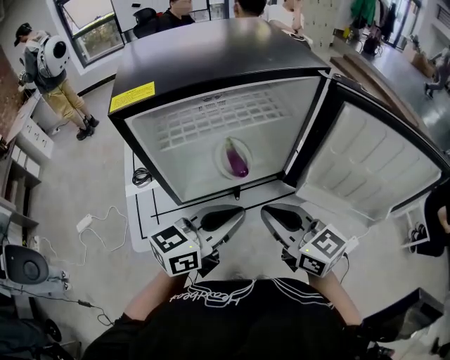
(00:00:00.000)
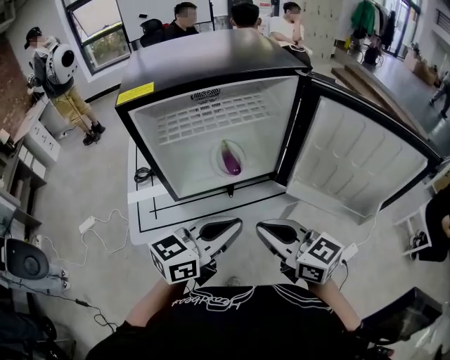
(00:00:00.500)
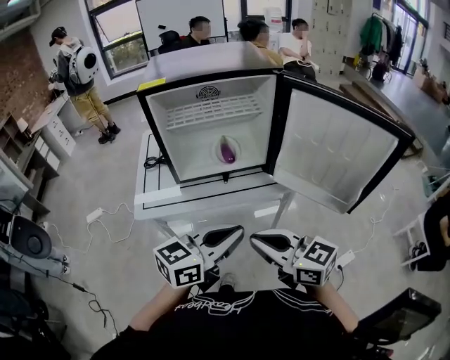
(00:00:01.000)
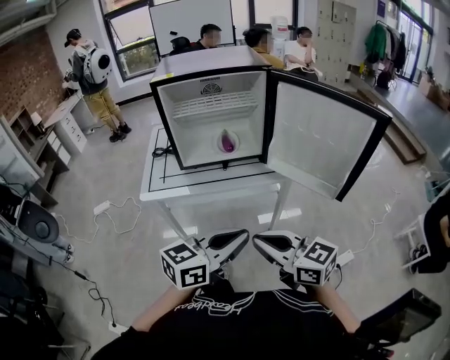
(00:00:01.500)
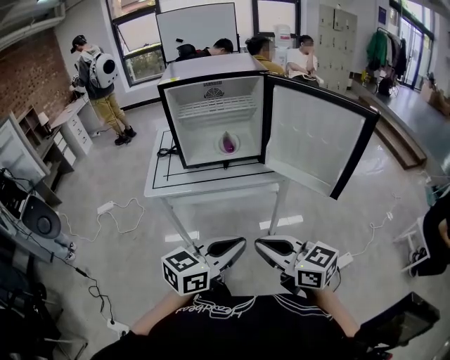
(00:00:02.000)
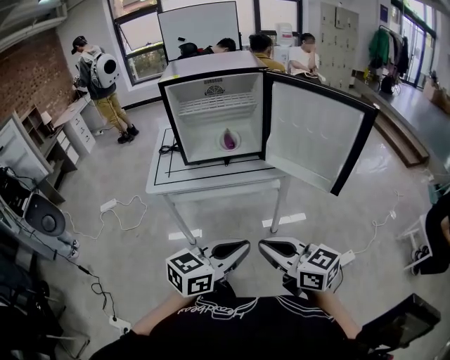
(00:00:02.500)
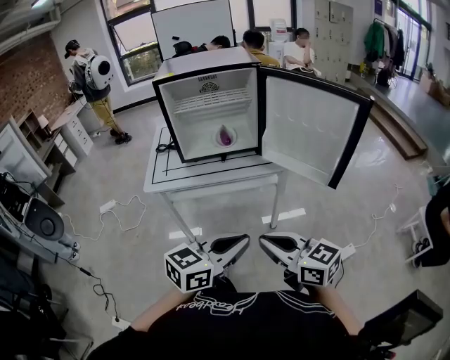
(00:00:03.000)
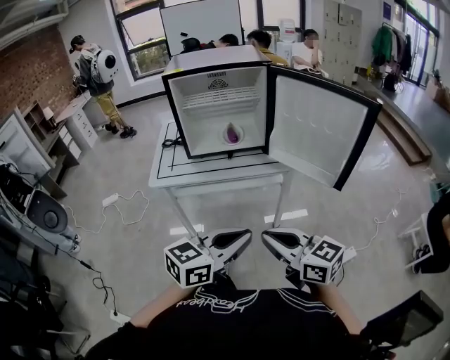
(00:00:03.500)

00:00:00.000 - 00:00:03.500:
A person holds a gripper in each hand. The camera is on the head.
00:00:00.000 - 00:00:02.000: The grippers both shift backward by about 35 cm.
00:00:02.000 - 00:00:03.500: The grippers make only small movements.

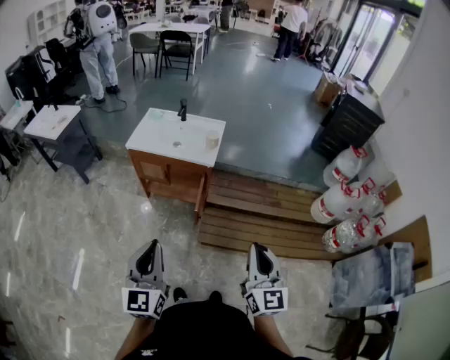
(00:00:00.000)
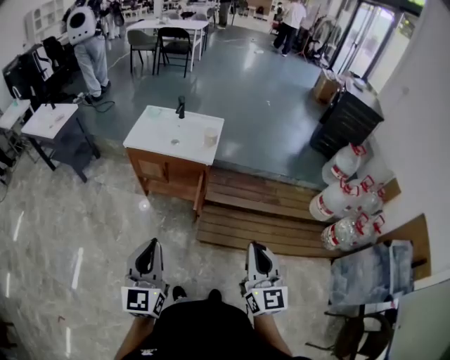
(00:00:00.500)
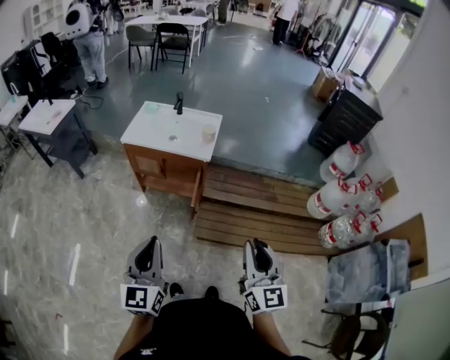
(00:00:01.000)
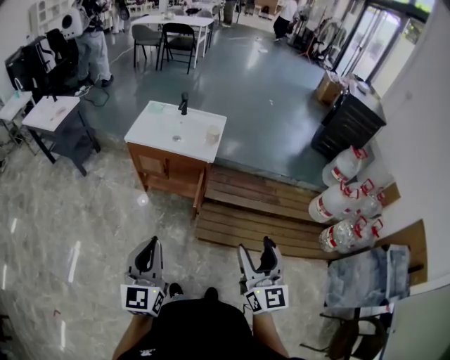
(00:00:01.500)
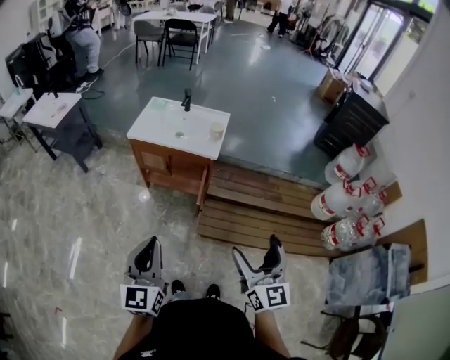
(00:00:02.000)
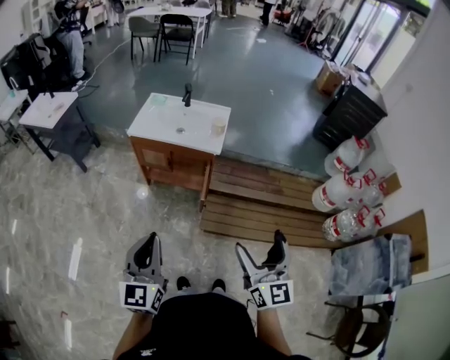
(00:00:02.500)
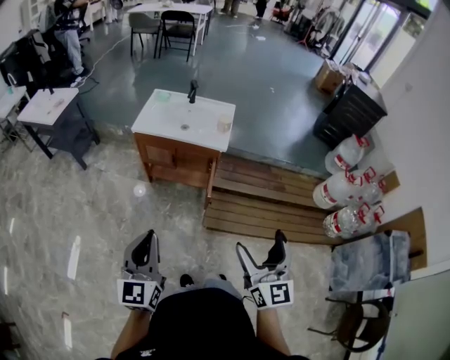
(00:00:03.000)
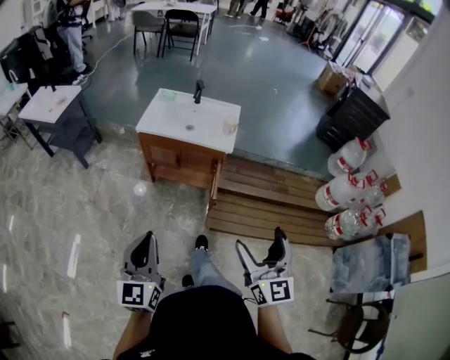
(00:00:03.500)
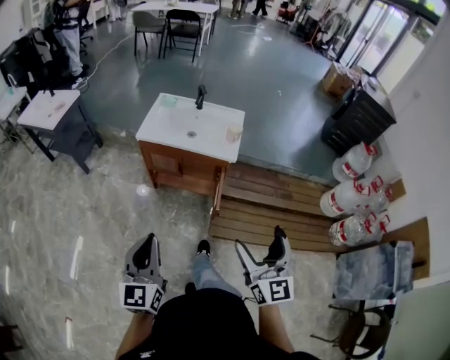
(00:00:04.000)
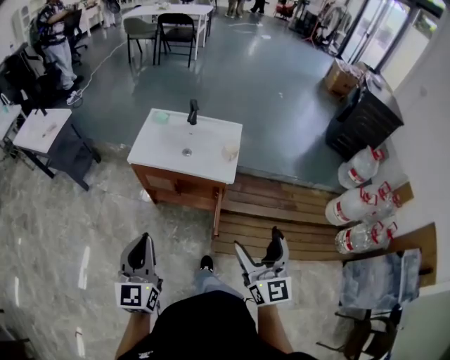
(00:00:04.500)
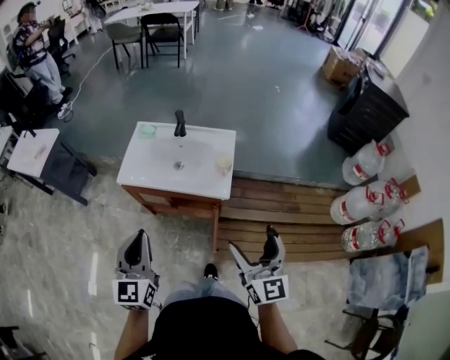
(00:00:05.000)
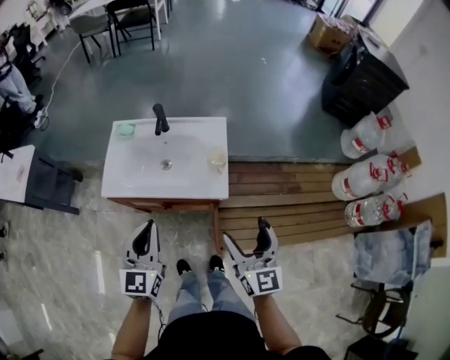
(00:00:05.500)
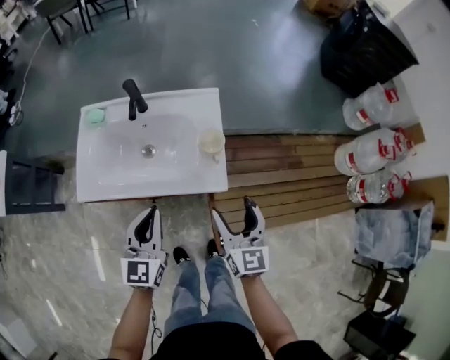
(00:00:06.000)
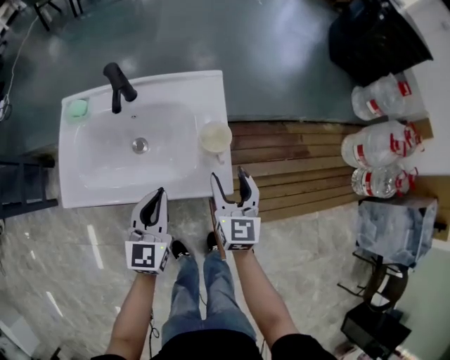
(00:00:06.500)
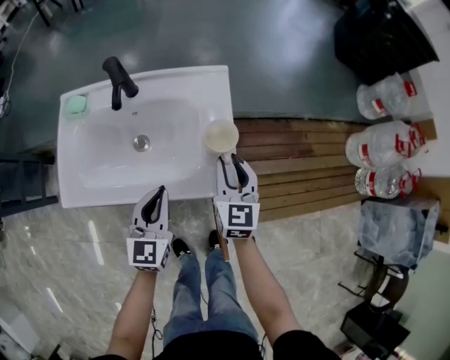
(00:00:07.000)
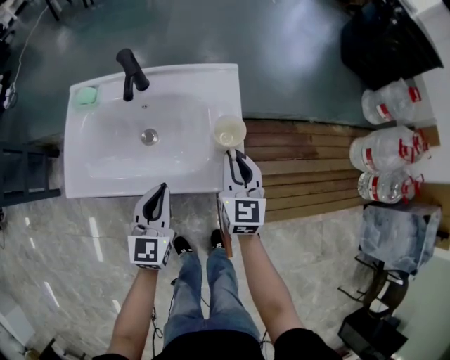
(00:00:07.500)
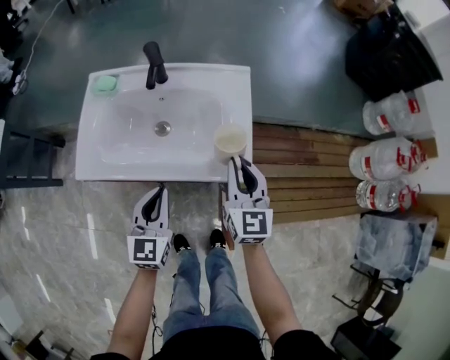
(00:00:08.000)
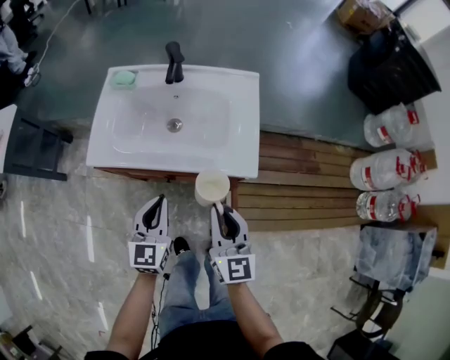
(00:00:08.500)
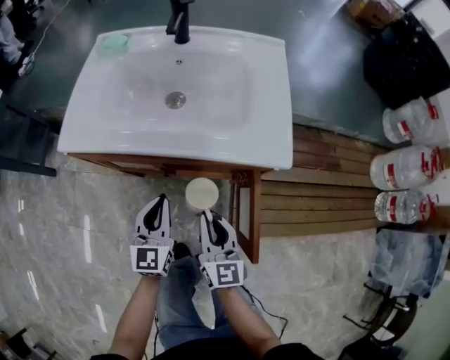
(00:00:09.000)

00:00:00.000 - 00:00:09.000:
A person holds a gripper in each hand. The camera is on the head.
00:00:00.000 - 00:00:02.000: The right gripper opens up.
00:00:02.000 - 00:00:04.500: The left gripper moves forward and to the left, some 25 cm; the right gripper is displaced forward by about 20 cm.
00:00:04.500 - 00:00:07.000: Both grippers are carried forward, about 40 cm. The grippers both shift downward by some 35 cm. The right gripper swivels about 30 degrees, and closes. The left gripper changes its angle by roughly 30 degrees.
00:00:07.000 - 00:00:09.000: The left gripper is displaced downward, backward and to the left by roughly 20 cm. The right gripper is displaced backward, downward and to the left by some 30 cm.

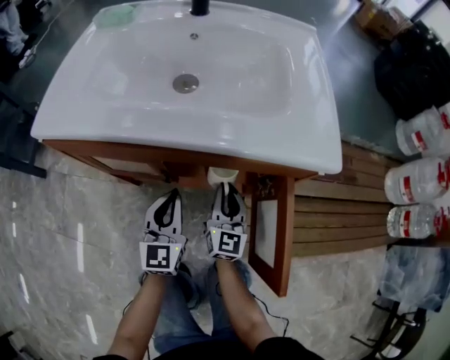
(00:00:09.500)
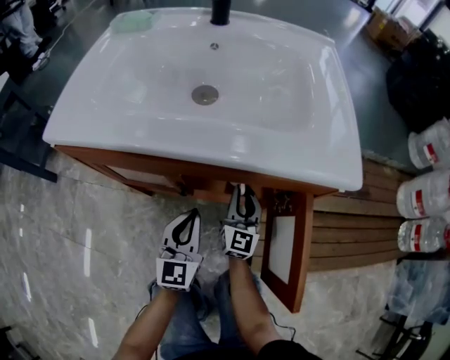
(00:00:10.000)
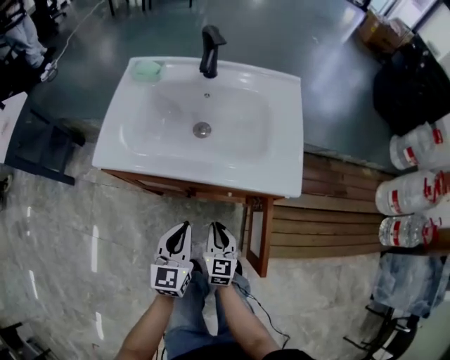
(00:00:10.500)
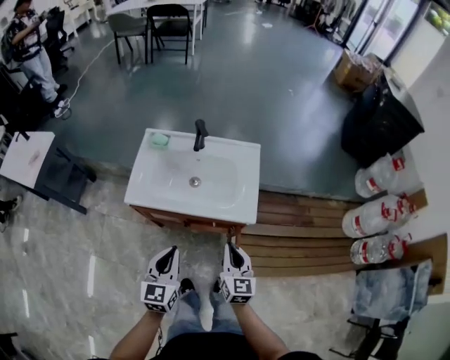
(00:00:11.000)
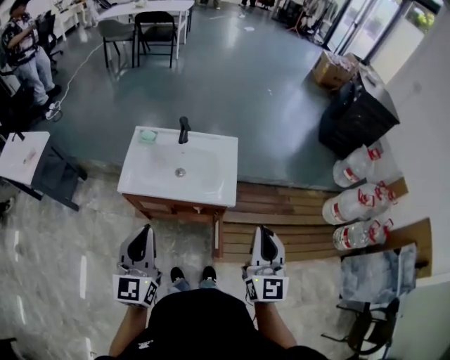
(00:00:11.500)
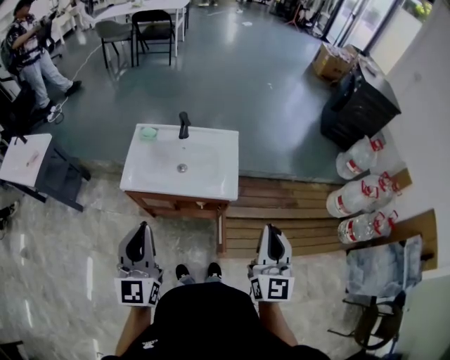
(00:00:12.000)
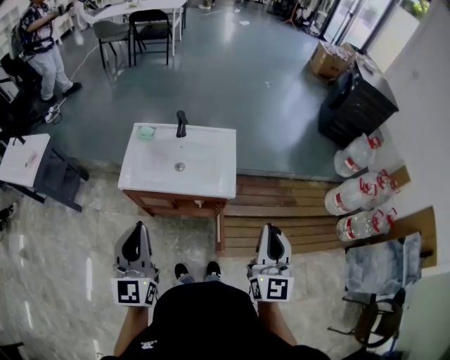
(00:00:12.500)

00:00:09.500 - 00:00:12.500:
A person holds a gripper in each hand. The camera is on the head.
00:00:09.500 - 00:00:11.000: The grippers both shift upward by about 40 cm.
00:00:11.000 - 00:00:12.500: The right gripper heads upward and to the right, covering roughly 30 cm, and rotates approximately 30 degrees. The left gripper travels upward by about 25 cm, and rotates roughly 20 degrees.

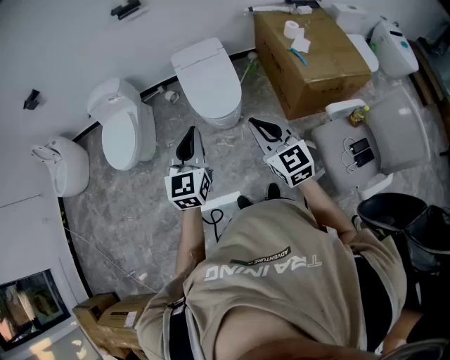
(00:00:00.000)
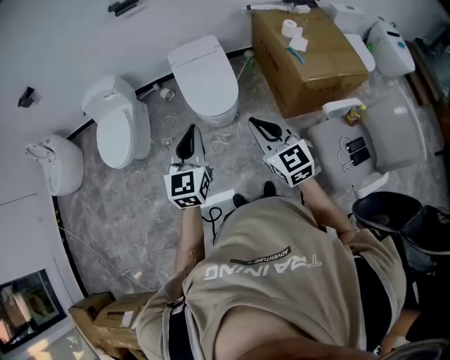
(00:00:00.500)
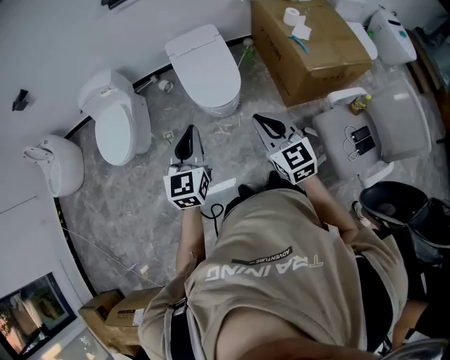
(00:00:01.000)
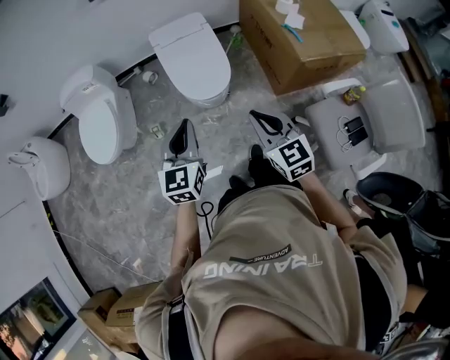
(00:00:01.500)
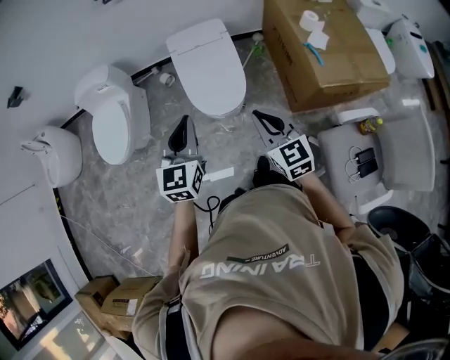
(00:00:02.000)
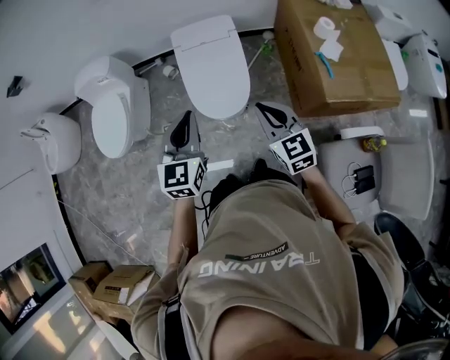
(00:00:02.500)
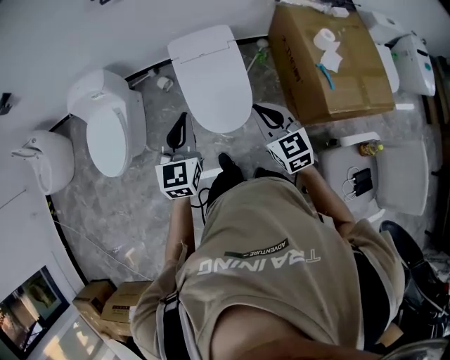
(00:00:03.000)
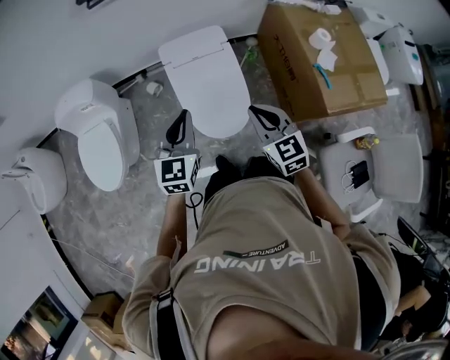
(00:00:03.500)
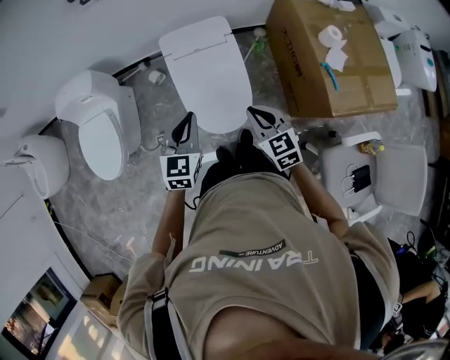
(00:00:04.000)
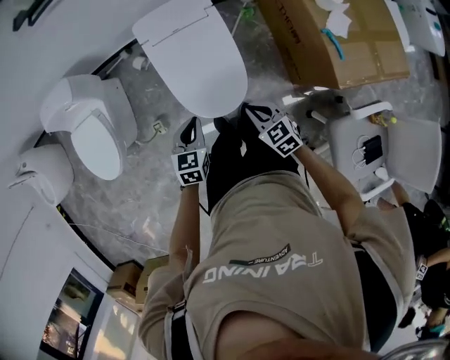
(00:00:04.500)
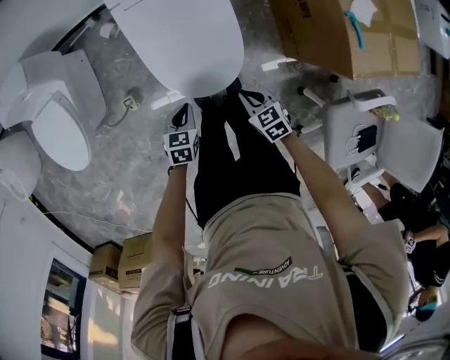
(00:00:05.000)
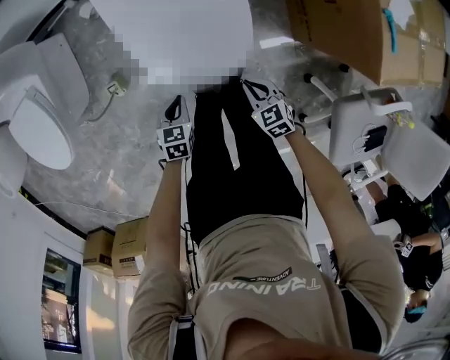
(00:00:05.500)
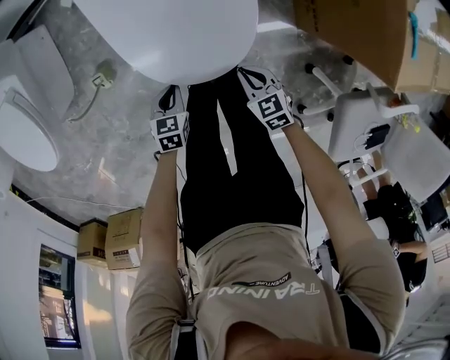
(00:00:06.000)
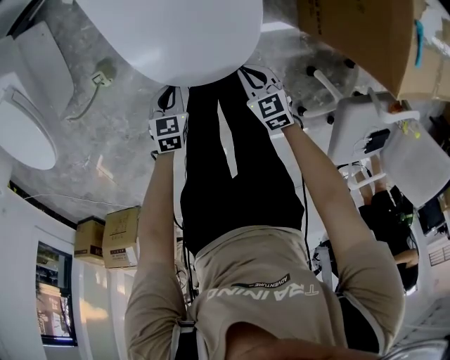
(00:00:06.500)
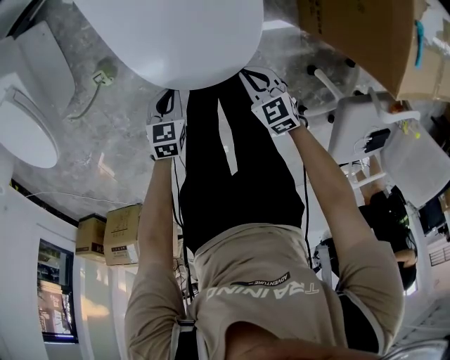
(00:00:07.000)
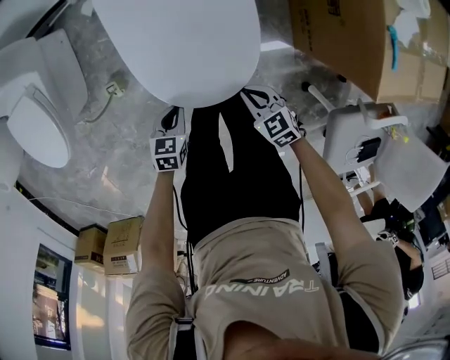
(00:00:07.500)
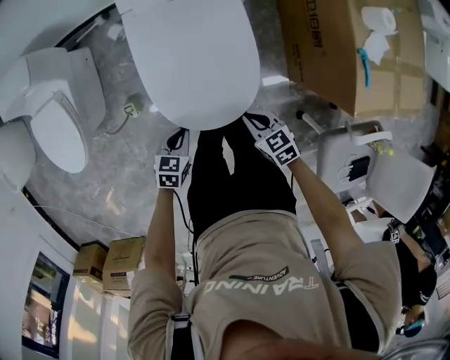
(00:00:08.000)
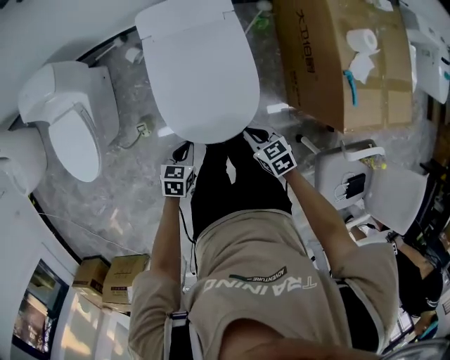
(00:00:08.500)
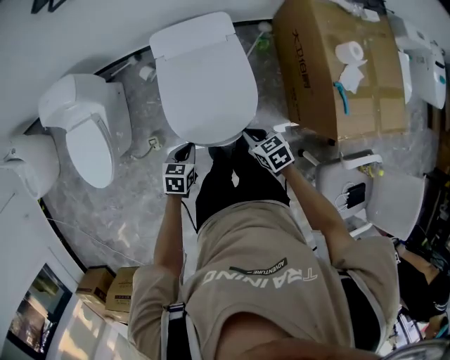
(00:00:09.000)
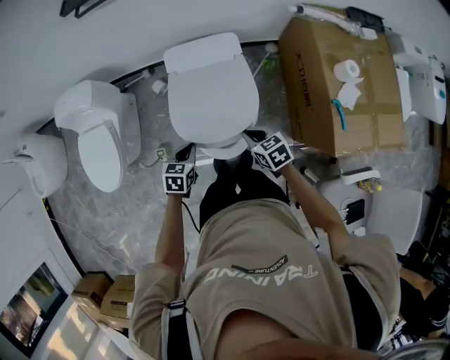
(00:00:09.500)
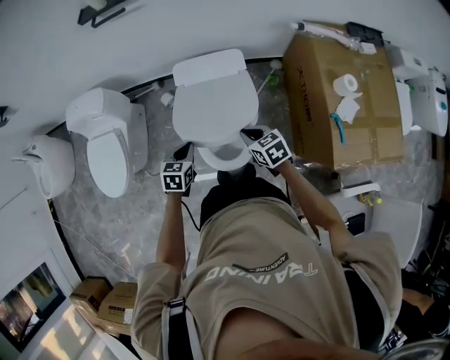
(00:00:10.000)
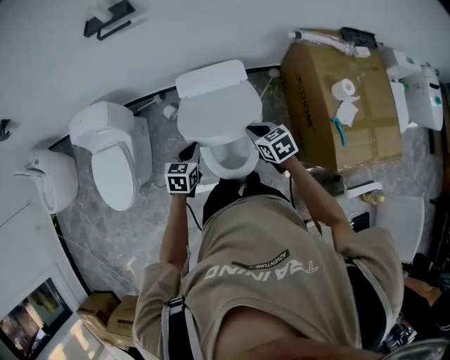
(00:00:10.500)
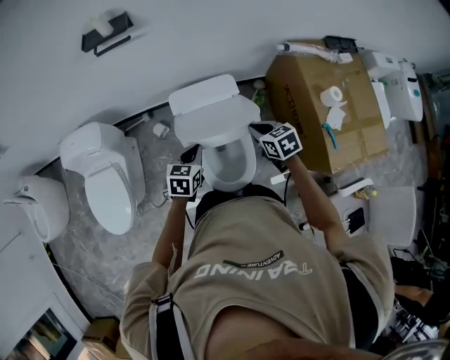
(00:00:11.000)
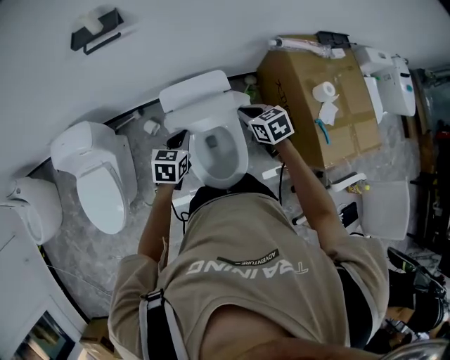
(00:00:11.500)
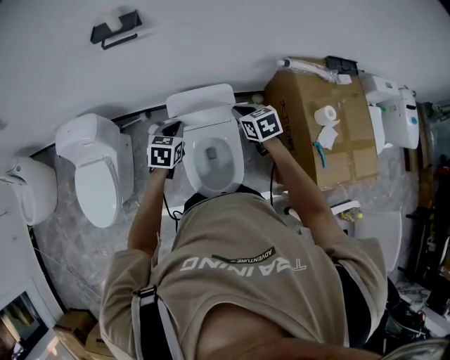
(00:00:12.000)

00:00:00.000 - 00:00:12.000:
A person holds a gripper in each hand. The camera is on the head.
00:00:00.000 - 00:00:02.000: The left gripper heads forward, covering about 15 cm, while the right gripper is displaced forward and downward by approximately 15 cm.
00:00:02.000 - 00:00:04.000: The two grippers go roughly 25 cm forward and downward.
00:00:04.000 - 00:00:06.000: Both grippers move downward, about 50 cm. The left gripper tilts its fingers approximately 30 degrees downward; the right gripper rotates some 30 degrees.
00:00:06.000 - 00:00:08.000: Both grippers move upward, about 20 cm.
00:00:08.000 - 00:00:10.000: Both grippers travel together upward and forward, some 25 cm.
00:00:10.000 - 00:00:12.000: Both grippers move forward and upward, roughly 20 cm.
